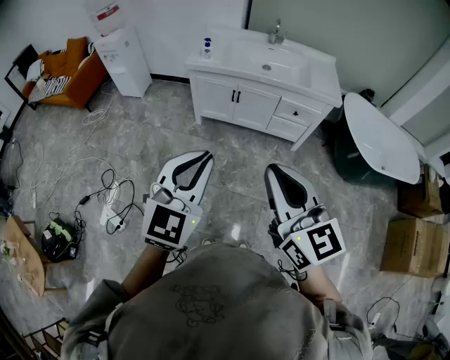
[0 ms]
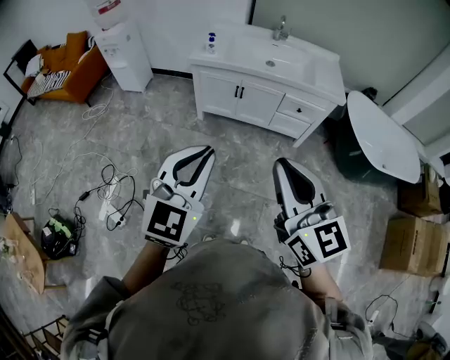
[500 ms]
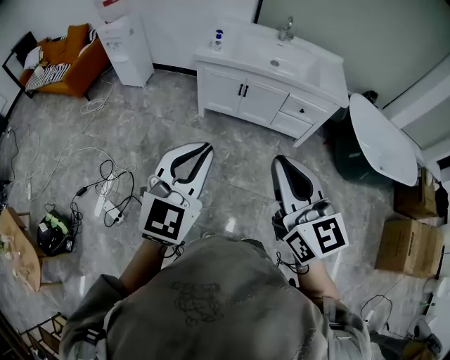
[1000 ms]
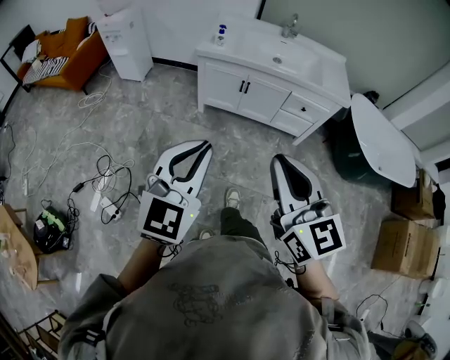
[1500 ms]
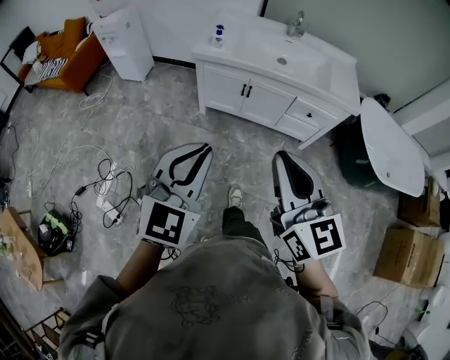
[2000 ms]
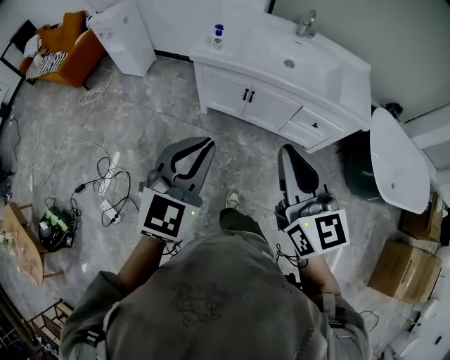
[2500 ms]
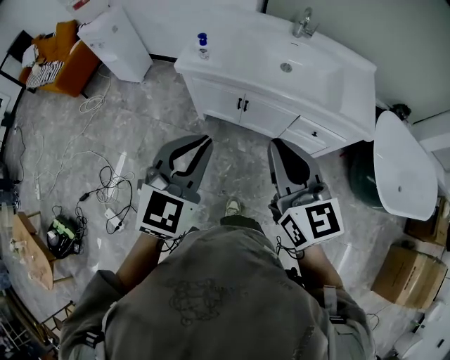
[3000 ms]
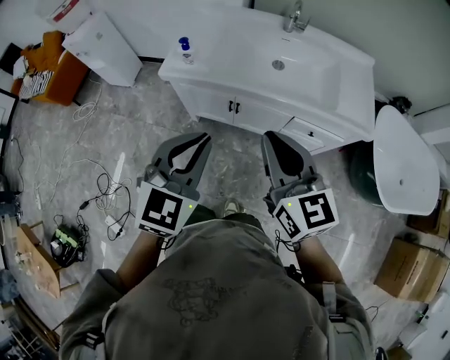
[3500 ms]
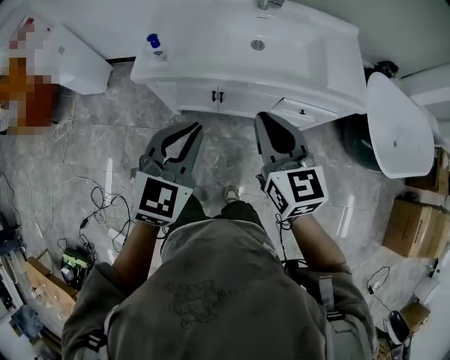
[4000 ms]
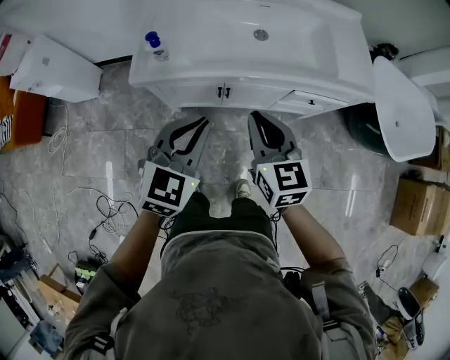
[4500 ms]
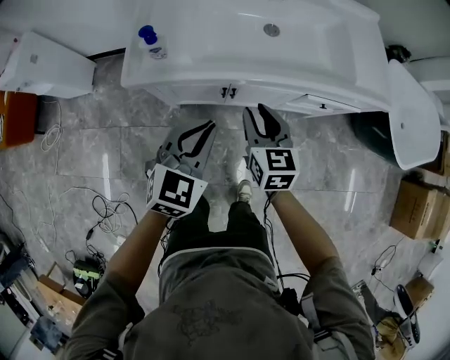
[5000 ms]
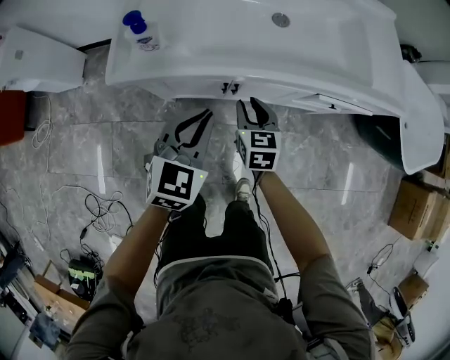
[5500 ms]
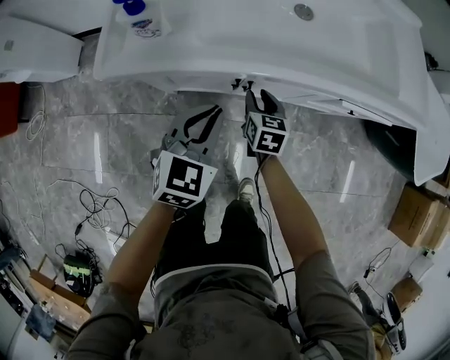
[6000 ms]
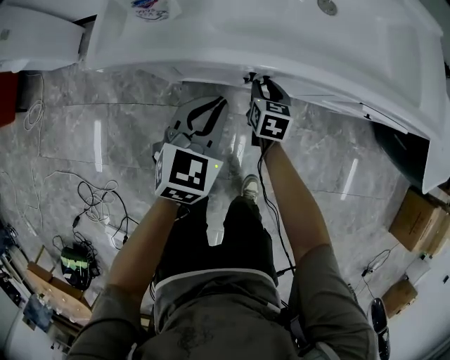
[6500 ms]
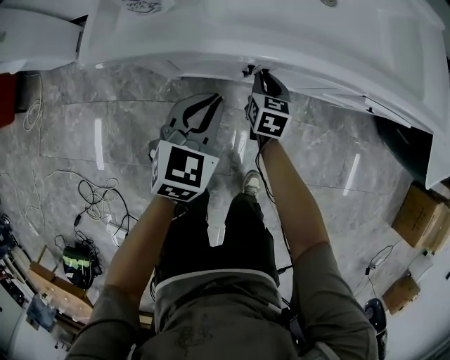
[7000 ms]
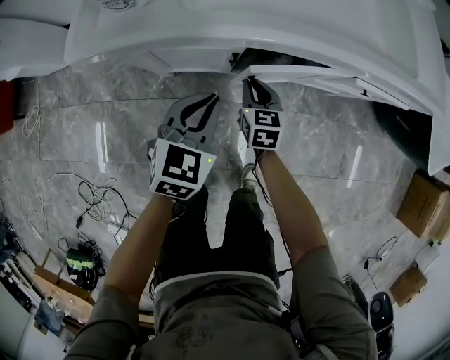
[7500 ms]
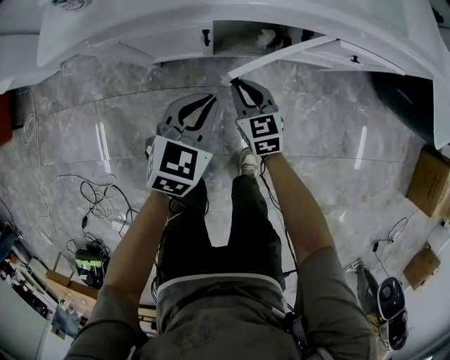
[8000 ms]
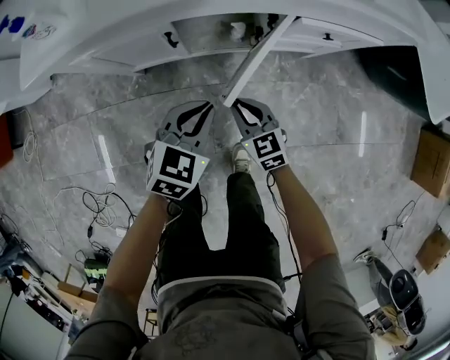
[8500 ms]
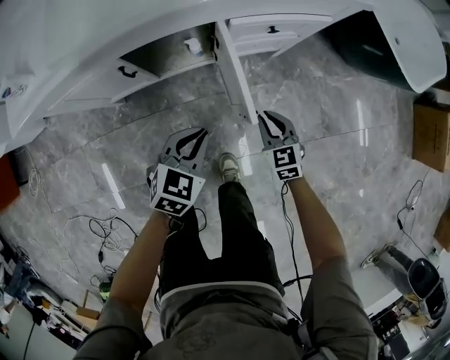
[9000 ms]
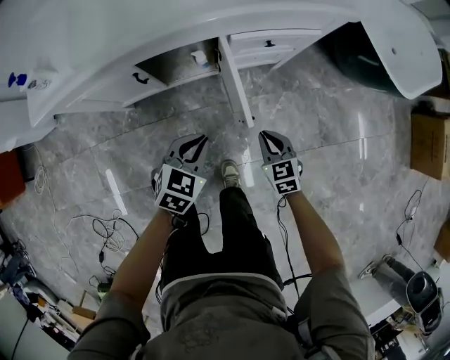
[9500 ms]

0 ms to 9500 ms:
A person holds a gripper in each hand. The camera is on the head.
0 ms to 2000 ms: The two grippers go about 15 cm forward.
2000 ms to 4000 ms: The grippers both shift forward by some 40 cm.
4000 ms to 5500 ms: The two grippers go roughly 30 cm downward and forward. The right gripper changes its angle by about 30 degrees, and opens up.
5500 ms to 7500 ms: The two grippers go about 15 cm downward.
7500 ms to 9500 ms: The two grippers go some 30 cm to the right and backward. The left gripper turns by roughly 20 degrees.

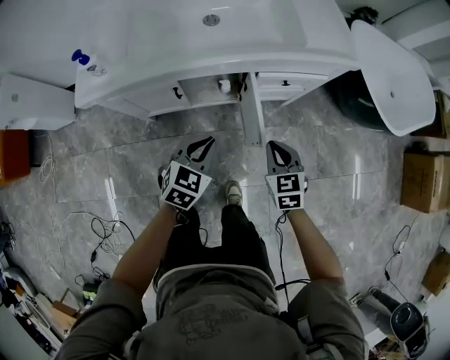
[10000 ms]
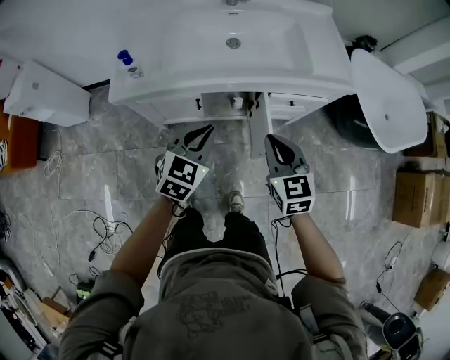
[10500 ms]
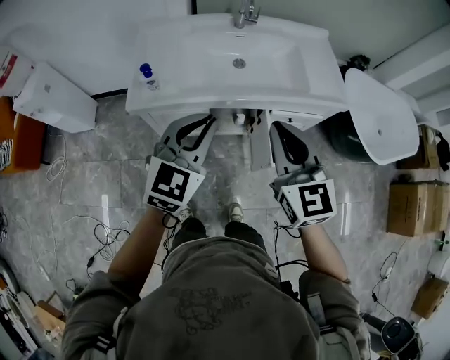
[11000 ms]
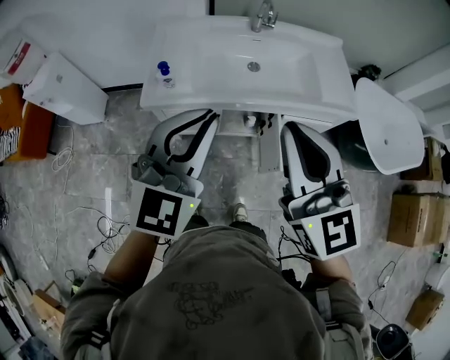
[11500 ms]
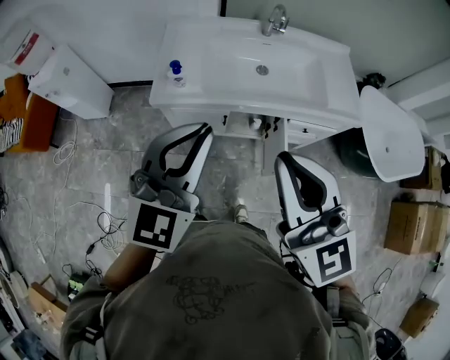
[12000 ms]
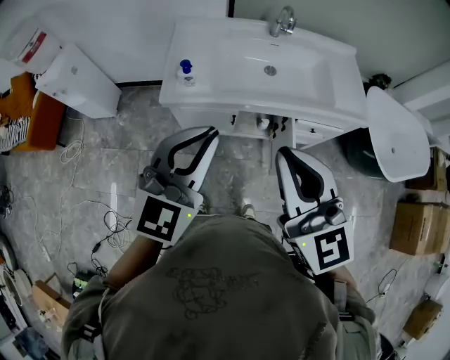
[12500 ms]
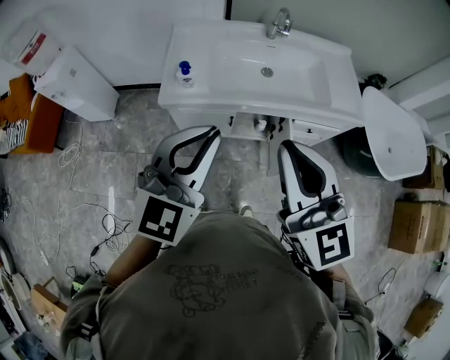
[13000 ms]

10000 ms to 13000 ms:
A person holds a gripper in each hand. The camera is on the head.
10000 ms to 11500 ms: Both grippers move upward, roughly 40 cm. The right gripper points its fingers approximately 40 degrees further upward. The left gripper tips its fingers upward by about 30 degrees.
11500 ms to 13000 ms: The right gripper goes roughly 5 cm to the left; the left gripper ends up roughly 5 cm from where it was.

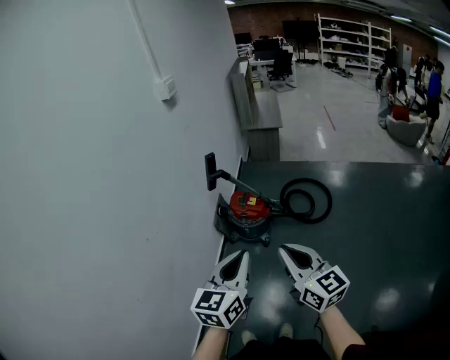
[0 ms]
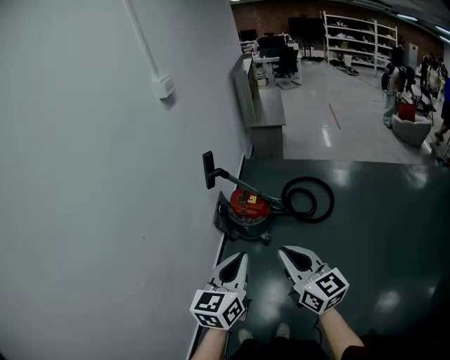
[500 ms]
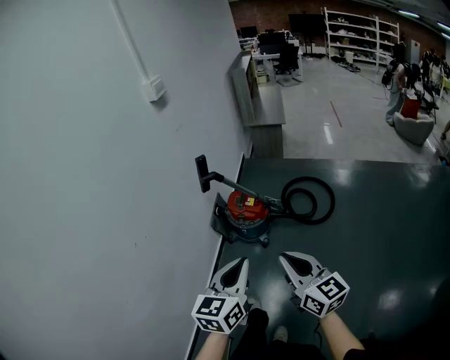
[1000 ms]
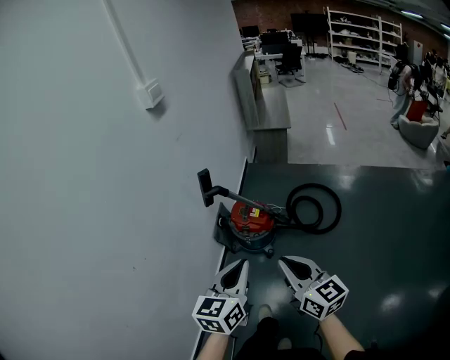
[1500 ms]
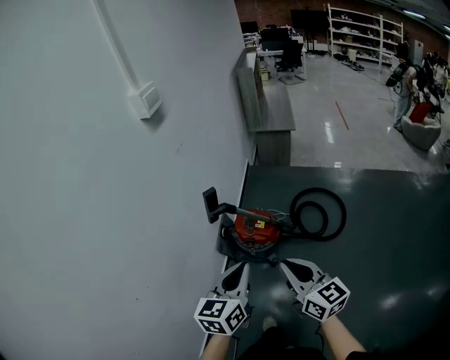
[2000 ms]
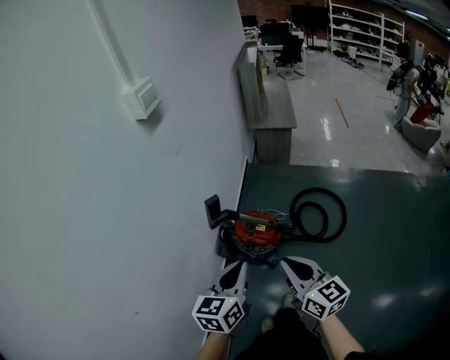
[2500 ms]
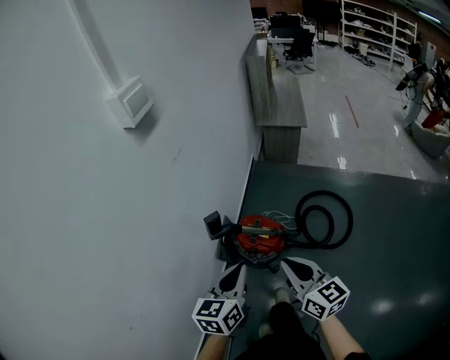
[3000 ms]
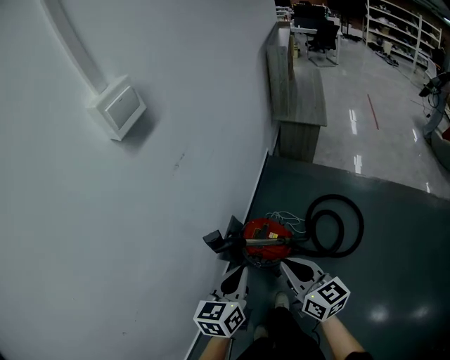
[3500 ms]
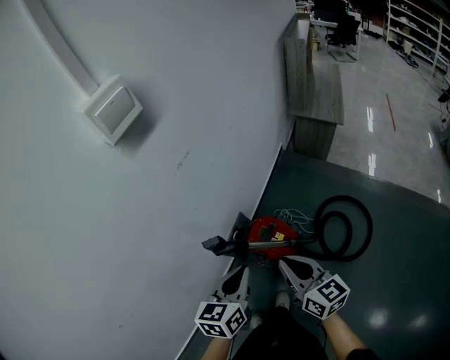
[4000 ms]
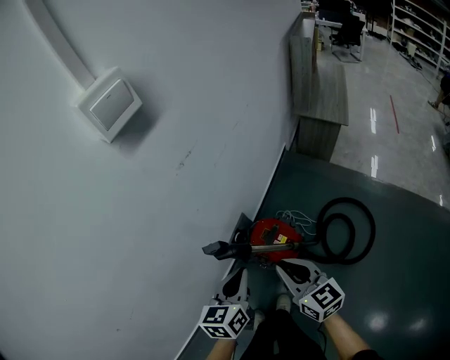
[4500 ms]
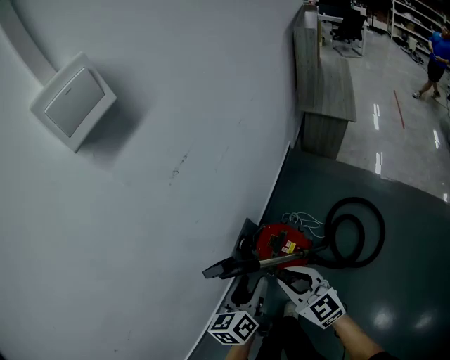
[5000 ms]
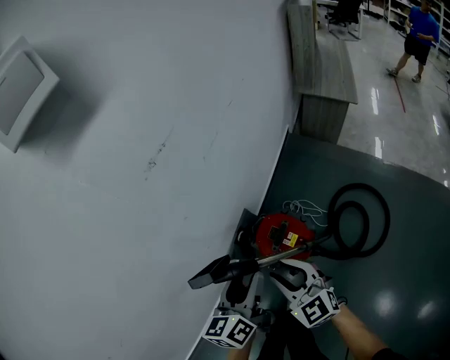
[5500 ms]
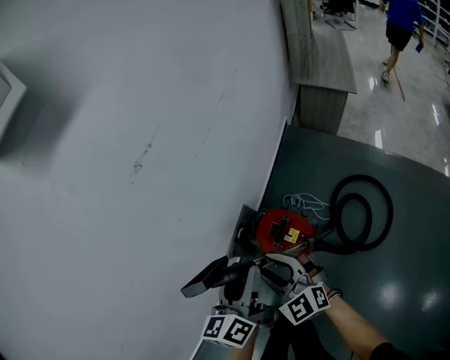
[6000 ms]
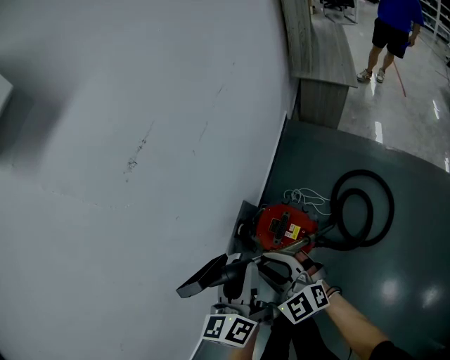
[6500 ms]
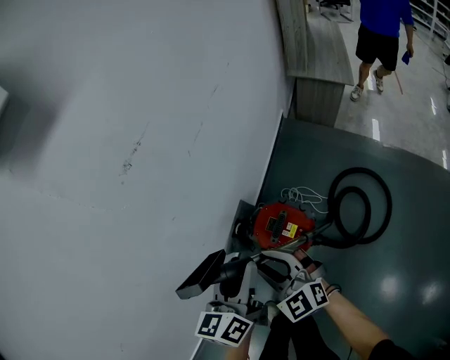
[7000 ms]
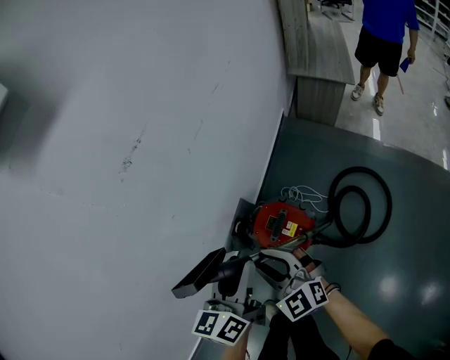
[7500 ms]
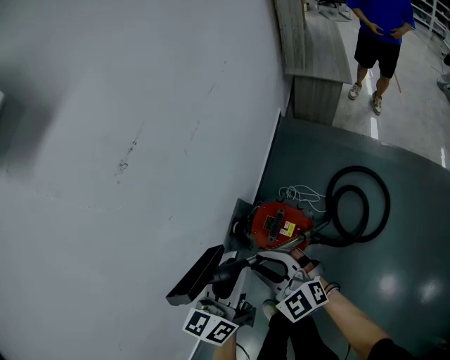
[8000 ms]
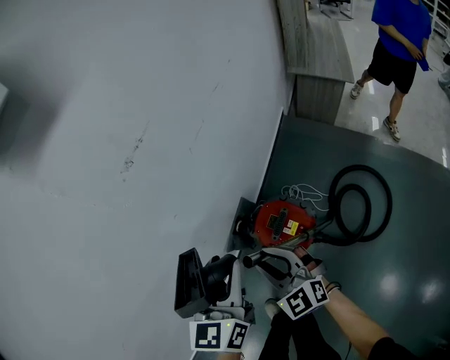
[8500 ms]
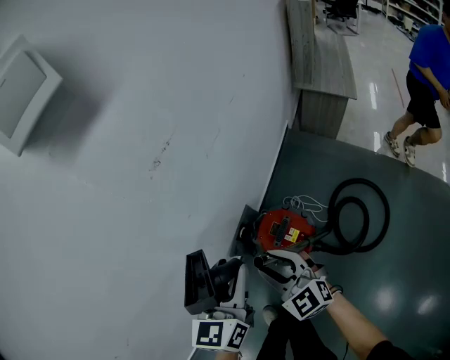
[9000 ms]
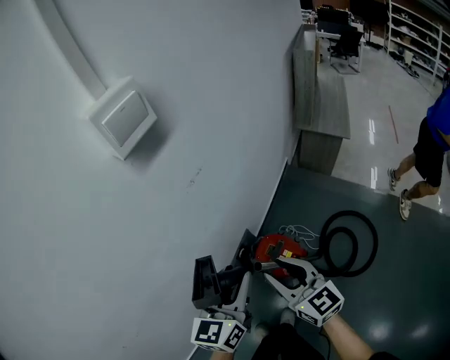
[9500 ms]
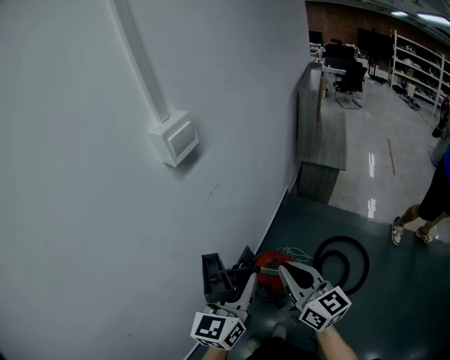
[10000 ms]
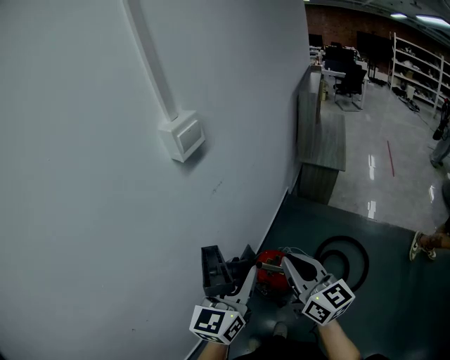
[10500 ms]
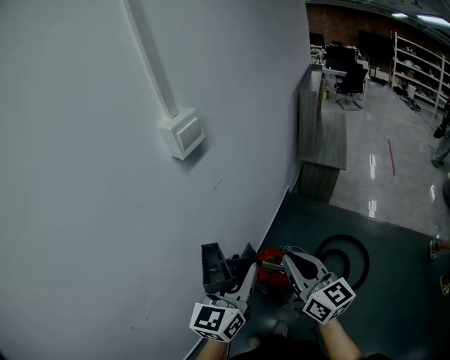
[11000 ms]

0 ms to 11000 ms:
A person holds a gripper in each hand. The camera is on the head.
0 ms to 2000 ms: Both grippers move forward, about 25 cm.
2000 ms to 3500 ms: The grippers both shift forward by some 20 cm.
3500 ms to 5500 ms: Both grippers travel together downward and forward, roughly 15 cm. The right gripper changes its angle by about 40 degrees, and opens. Meanwhile the left gripper changes its angle by some 20 degrees, and opens.
7500 ms to 9000 ms: The left gripper goes roughly 5 cm upward, and rotates about 20 degrees.
9000 ms to 11000 ms: The left gripper goes approximately 20 cm upward and backward, while the right gripper is displaced upward by approximately 30 cm, turns by roughly 40 degrees, and closes its fingers.

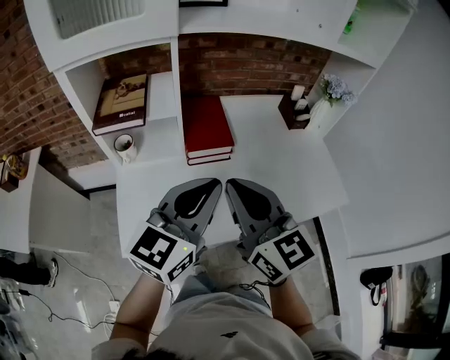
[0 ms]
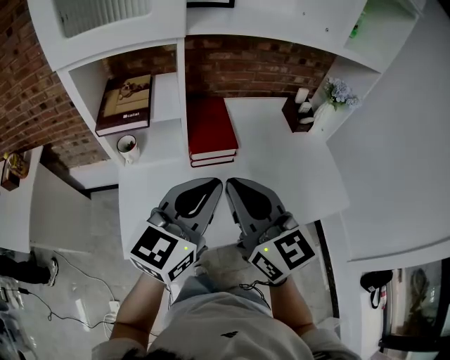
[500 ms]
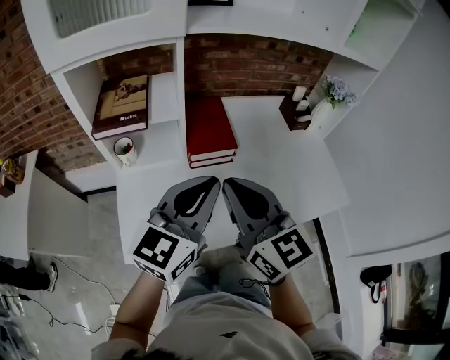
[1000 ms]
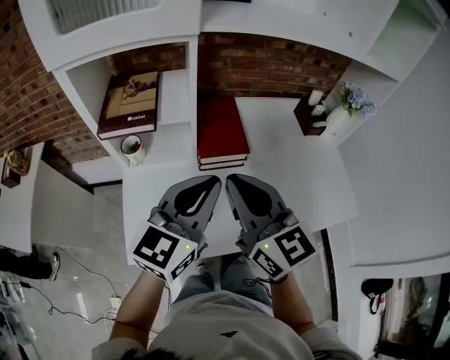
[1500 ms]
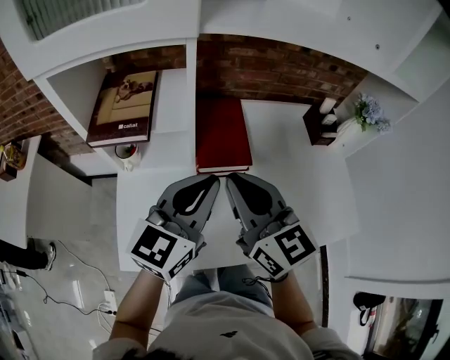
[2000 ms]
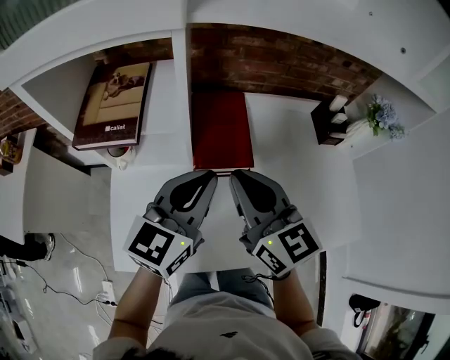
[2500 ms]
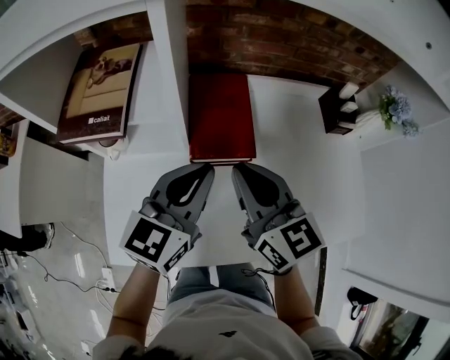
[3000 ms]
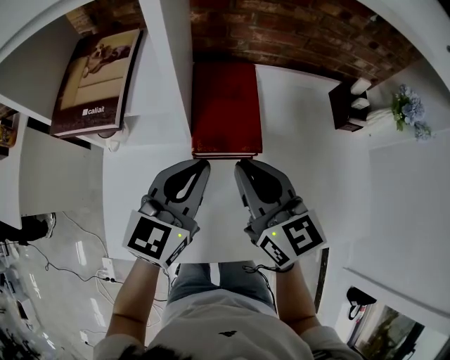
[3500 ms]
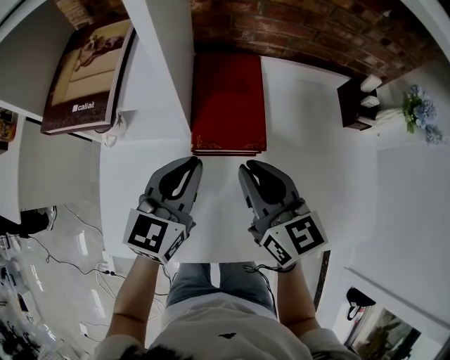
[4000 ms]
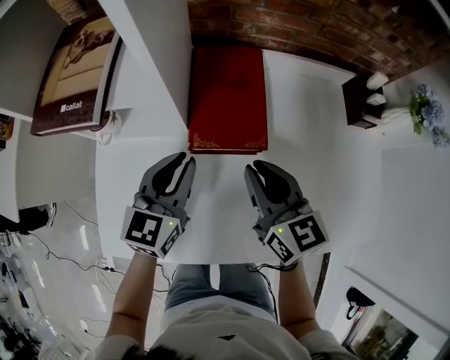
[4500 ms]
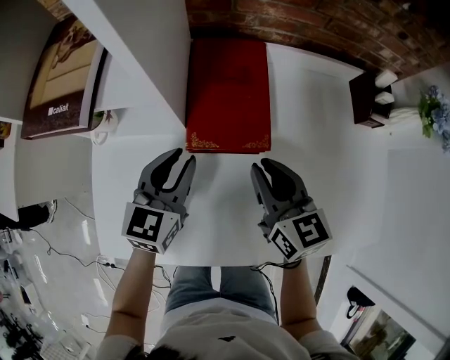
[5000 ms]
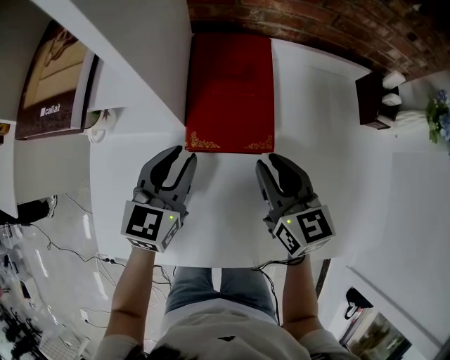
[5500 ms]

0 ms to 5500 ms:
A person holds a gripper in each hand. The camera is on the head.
0 ms to 2000 ms: The grippers both shift forward by about 10 cm.
2000 ms to 3500 ms: The two grippers go approximately 10 cm downward and forward.
3500 ms to 5500 ms: The right gripper shifts approximately 15 cm downward and to the right. Meanwhile the left gripper is displaced downward by about 10 cm, and opens its fingers.
